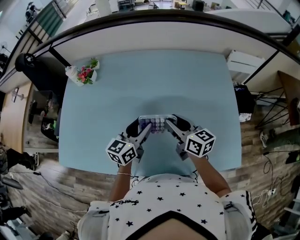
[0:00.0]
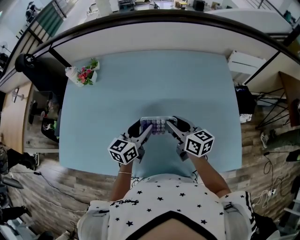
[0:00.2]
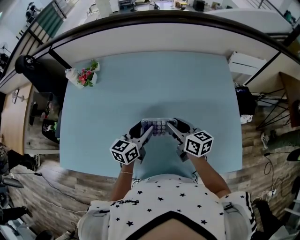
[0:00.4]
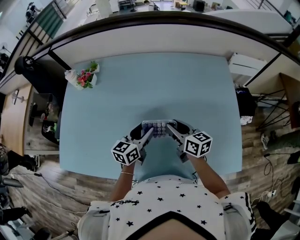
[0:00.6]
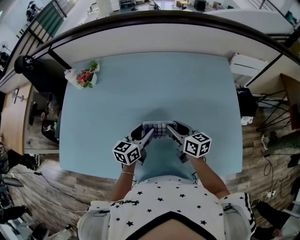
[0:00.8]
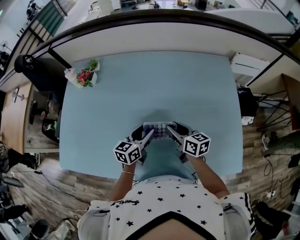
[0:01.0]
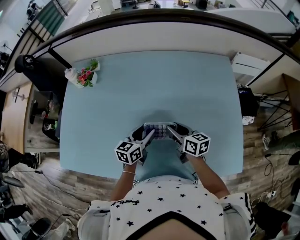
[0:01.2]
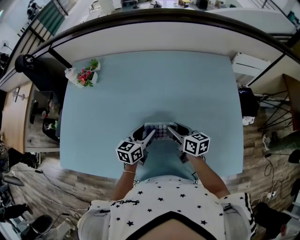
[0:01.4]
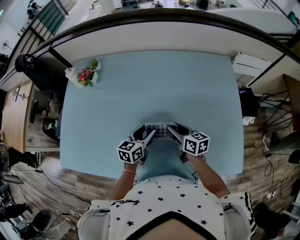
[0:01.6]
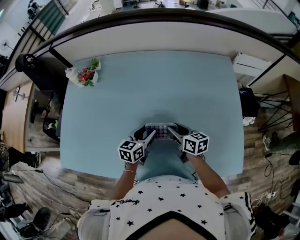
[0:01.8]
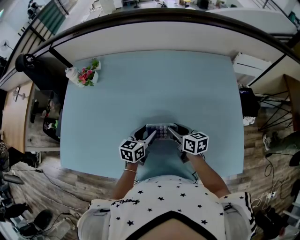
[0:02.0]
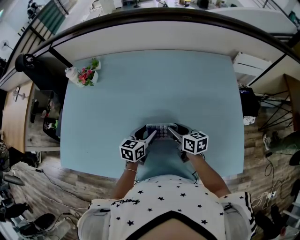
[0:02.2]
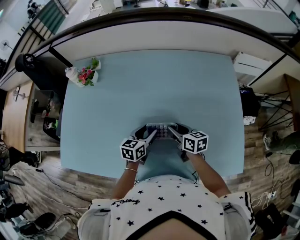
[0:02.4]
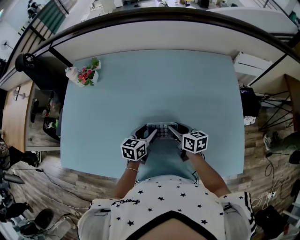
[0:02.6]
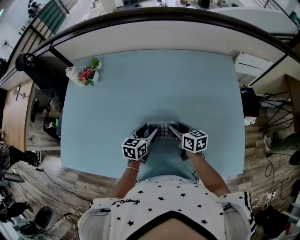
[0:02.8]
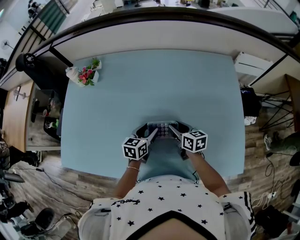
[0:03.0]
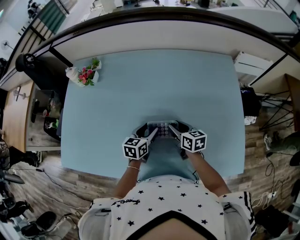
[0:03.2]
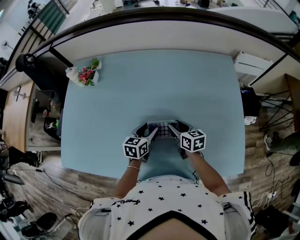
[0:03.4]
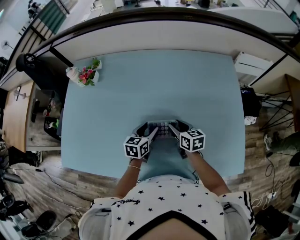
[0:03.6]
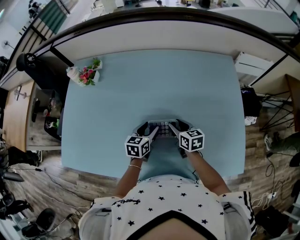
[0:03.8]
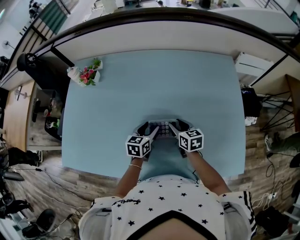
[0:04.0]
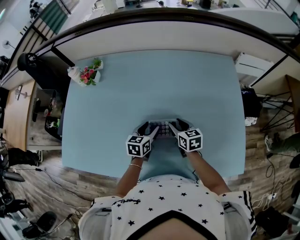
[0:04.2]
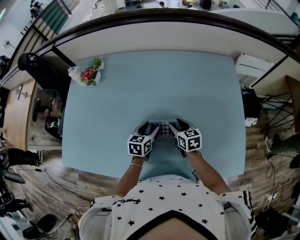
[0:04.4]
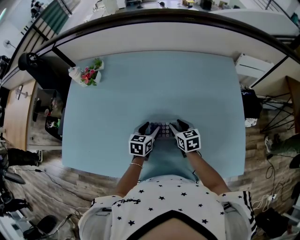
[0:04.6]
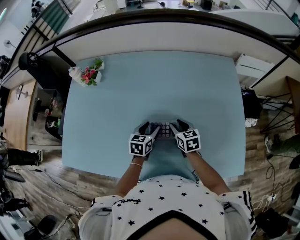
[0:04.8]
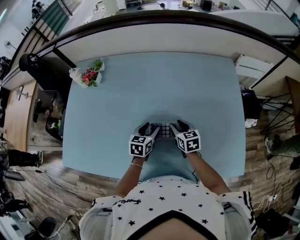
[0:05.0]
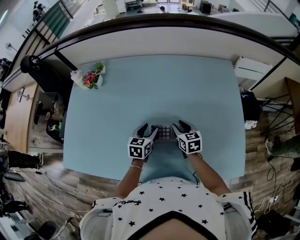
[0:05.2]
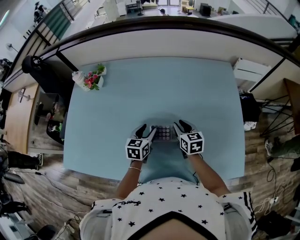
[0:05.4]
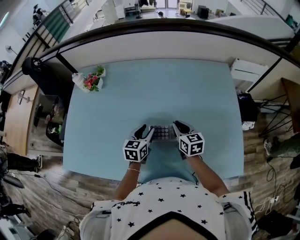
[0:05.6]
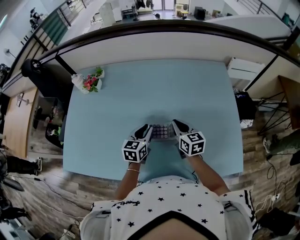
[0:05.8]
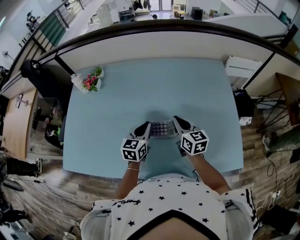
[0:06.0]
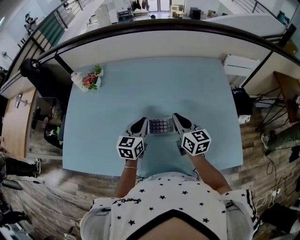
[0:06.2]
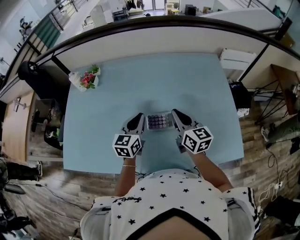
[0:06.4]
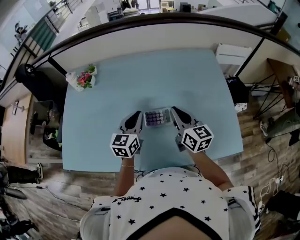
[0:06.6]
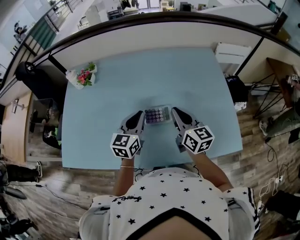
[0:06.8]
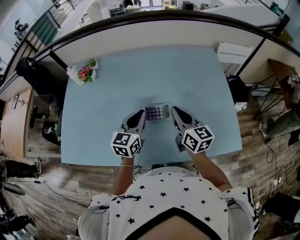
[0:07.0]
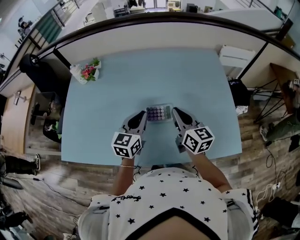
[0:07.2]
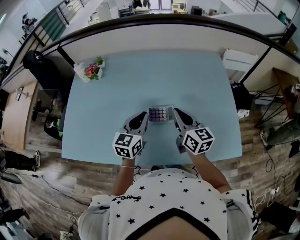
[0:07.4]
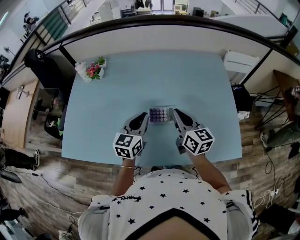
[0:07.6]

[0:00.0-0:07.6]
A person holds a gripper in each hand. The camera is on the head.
0:00.0 to 0:01.6: Both grippers move downward, approximately 10 cm.
0:01.6 to 0:03.0: The grippers move only a little.
0:03.0 to 0:04.6: The grippers make only small movements.
0:04.6 to 0:06.0: Both grippers travel together upward, some 10 cm. The left gripper closes up; the right gripper swivels approximately 20 degrees, and closes its fingers.
0:06.0 to 0:07.6: Both grippers travel together upward and backward, some 10 cm.

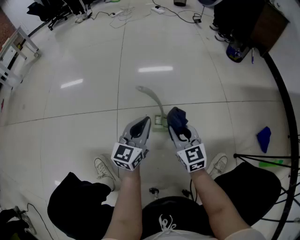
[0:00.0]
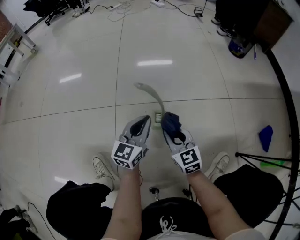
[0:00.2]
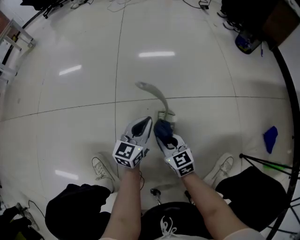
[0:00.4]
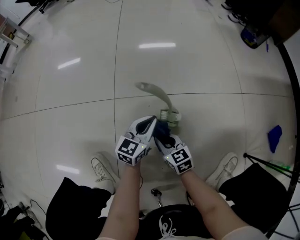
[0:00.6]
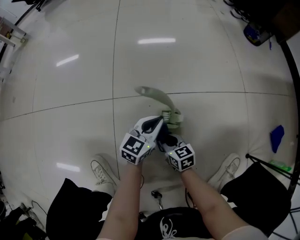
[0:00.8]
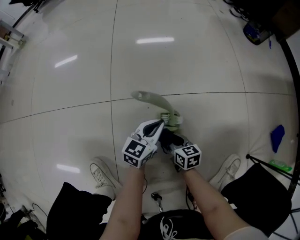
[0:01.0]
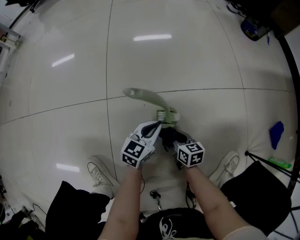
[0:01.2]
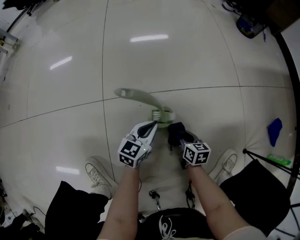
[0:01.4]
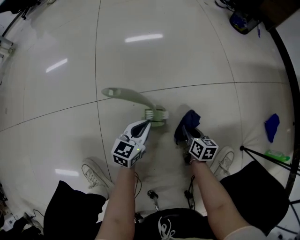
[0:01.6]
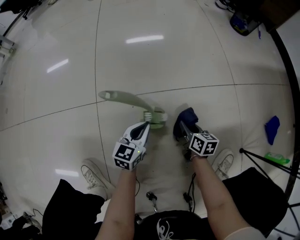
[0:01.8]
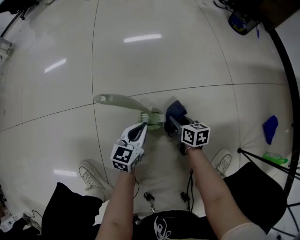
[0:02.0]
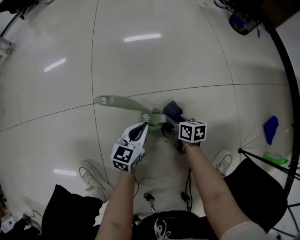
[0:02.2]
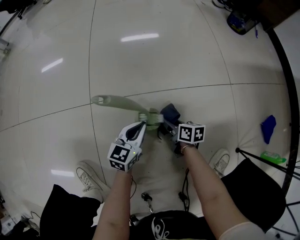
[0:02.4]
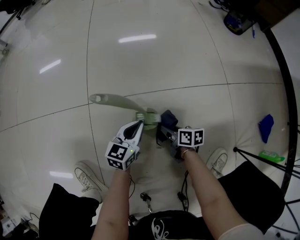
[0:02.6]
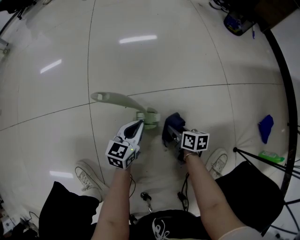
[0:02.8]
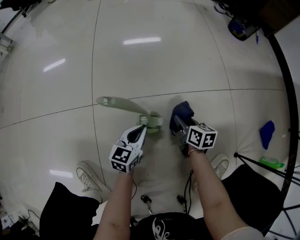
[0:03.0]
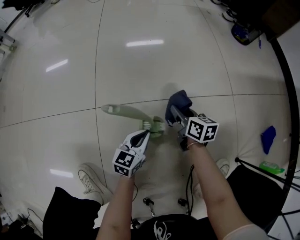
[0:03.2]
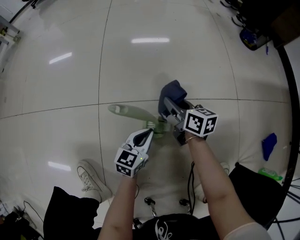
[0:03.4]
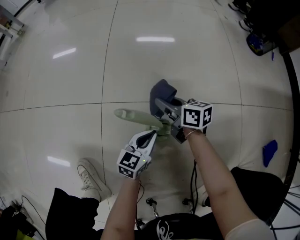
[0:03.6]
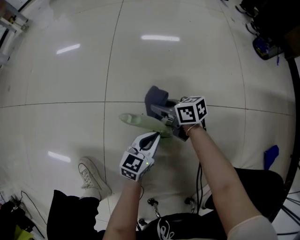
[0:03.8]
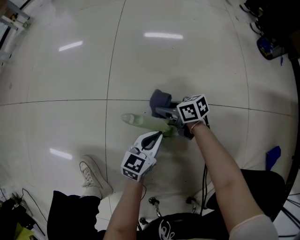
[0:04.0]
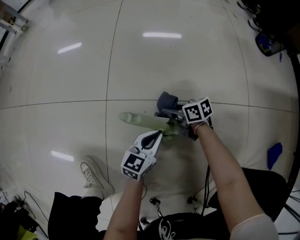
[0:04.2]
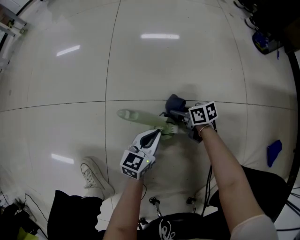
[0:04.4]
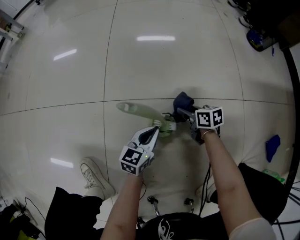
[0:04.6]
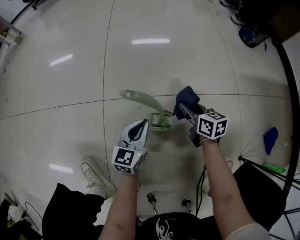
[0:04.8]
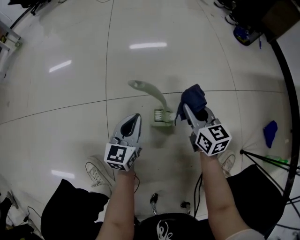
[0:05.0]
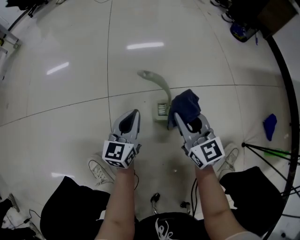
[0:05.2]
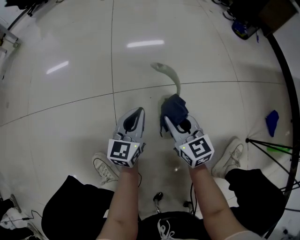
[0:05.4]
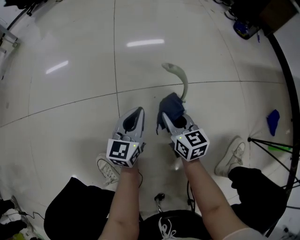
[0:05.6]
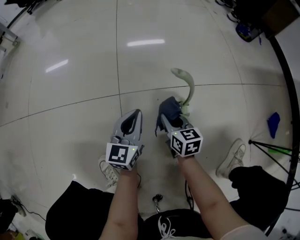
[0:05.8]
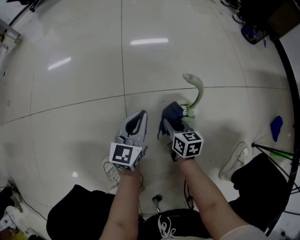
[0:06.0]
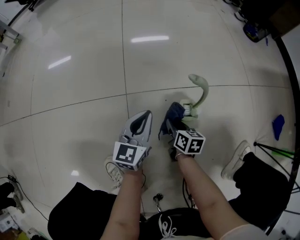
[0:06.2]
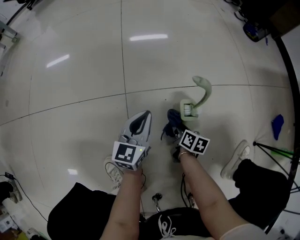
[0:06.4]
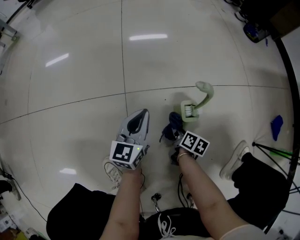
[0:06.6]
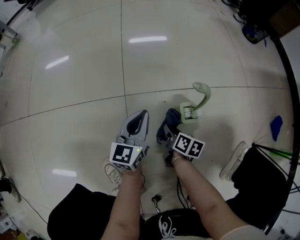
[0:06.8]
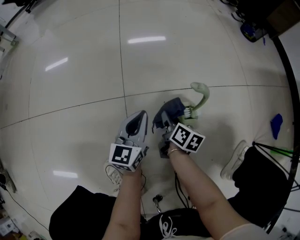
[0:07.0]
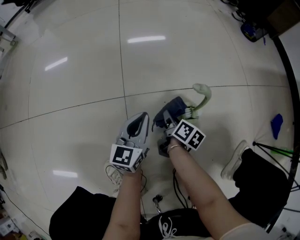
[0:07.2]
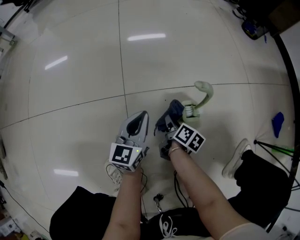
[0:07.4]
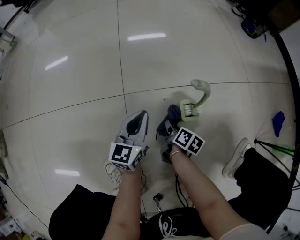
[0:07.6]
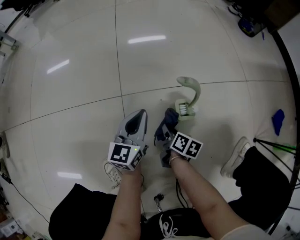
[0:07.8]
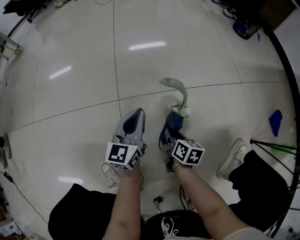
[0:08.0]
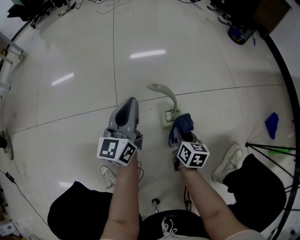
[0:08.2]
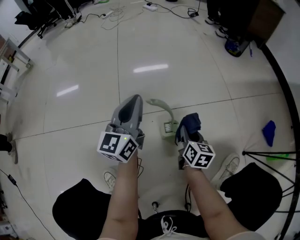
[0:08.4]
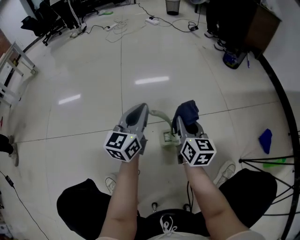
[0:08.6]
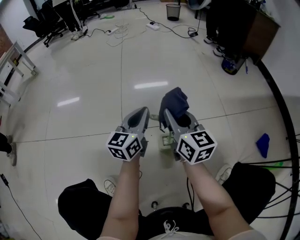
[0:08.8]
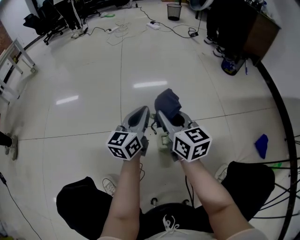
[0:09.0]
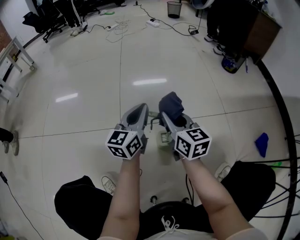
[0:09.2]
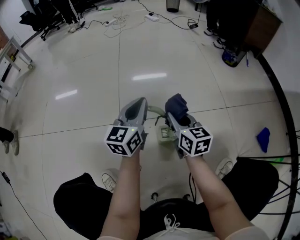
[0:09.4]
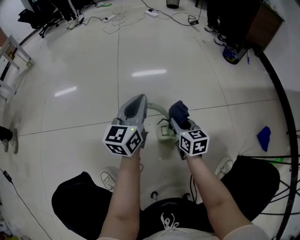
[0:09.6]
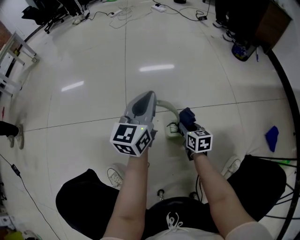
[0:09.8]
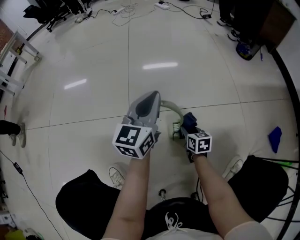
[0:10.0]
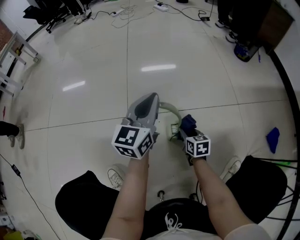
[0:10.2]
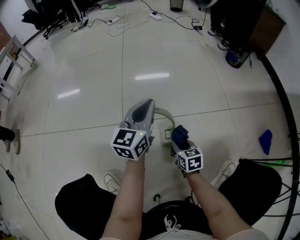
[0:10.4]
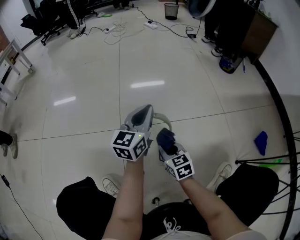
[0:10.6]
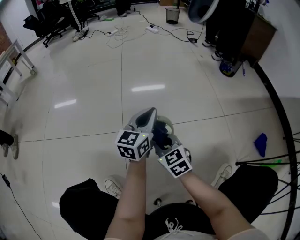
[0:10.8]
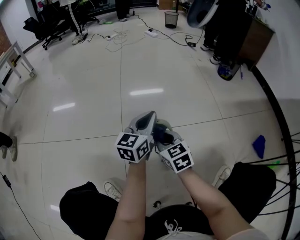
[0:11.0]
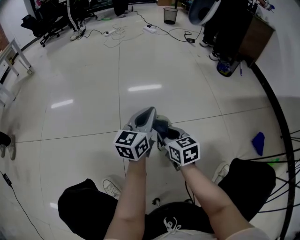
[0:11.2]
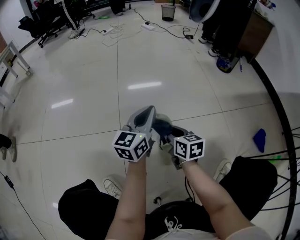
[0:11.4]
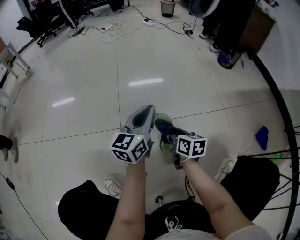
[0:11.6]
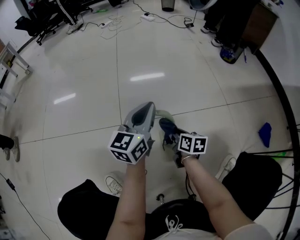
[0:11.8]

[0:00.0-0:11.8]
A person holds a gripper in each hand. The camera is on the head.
0:00.0 to 0:01.4: Both grippers move downward, roughly 25 cm. The right gripper changes its angle by roughly 40 degrees. Meanwhile the left gripper swivels about 20 degrees.
0:01.4 to 0:03.0: The right gripper goes forward and backward, about 10 cm each way, reversing 2 times.
0:03.0 to 0:04.4: The right gripper reaches approximately 10 cm upward, then returns, and changes its angle by about 40 degrees.
0:04.4 to 0:06.0: The right gripper heads to the left and backward, covering approximately 15 cm, moves some 20 cm upward and comes back, and turns by roughly 40 degrees. Meanwhile the left gripper shifts some 20 cm to the left and upward.
0:06.0 to 0:07.4: The right gripper moves up and down over about 10 cm, changing direction 2 times, and twists some 40 degrees clockwise, seen from behind.
0:07.4 to 0:08.8: The right gripper travels upward by approximately 40 cm, and rotates around the line of its fingers by some 50 degrees, counterclockwise from behind; the left gripper moves upward and to the right, roughly 25 cm.
0:08.8 to 0:10.4: The right gripper shifts about 25 cm downward, and points its fingers approximately 30 degrees further downward.
0:10.4 to 0:11.8: The right gripper moves roughly 15 cm upward and comes back, and changes its angle by roughly 30 degrees.

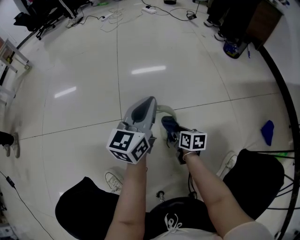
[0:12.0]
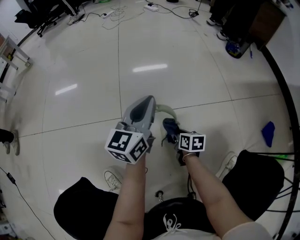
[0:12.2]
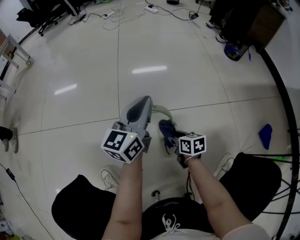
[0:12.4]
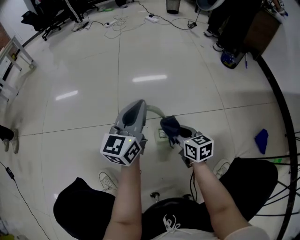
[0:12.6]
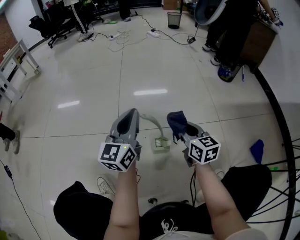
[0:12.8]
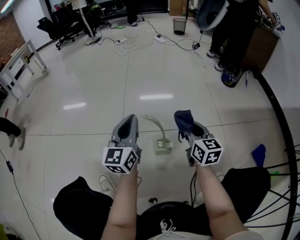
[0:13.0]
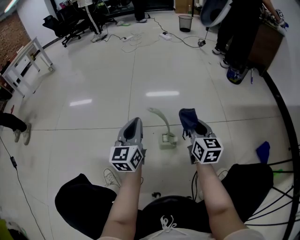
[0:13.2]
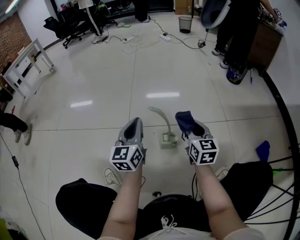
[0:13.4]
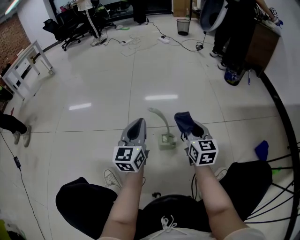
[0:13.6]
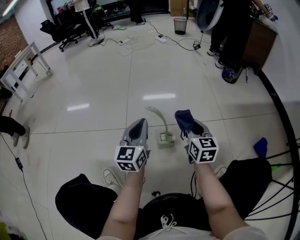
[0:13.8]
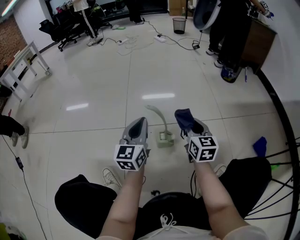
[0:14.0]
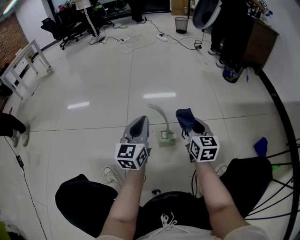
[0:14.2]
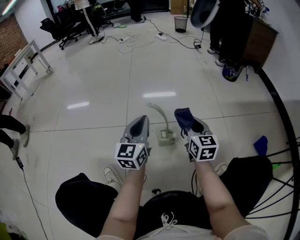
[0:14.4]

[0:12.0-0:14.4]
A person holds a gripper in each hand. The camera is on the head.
0:12.0 to 0:13.2: The right gripper moves upward and to the right, approximately 25 cm, and rotates roughly 40 degrees. Meanwhile the left gripper is displaced backward by some 5 cm, and swivels approximately 20 degrees.
0:13.2 to 0:14.4: There are only small adjustments of the grippers.

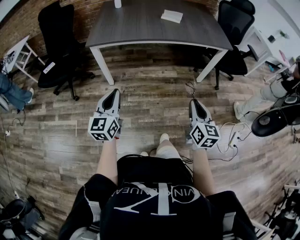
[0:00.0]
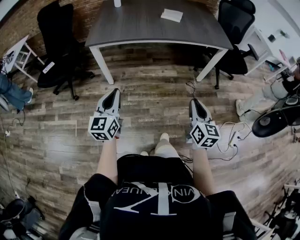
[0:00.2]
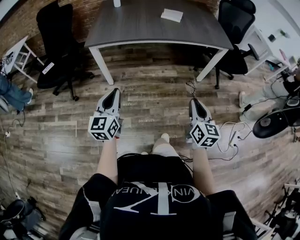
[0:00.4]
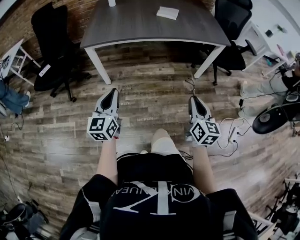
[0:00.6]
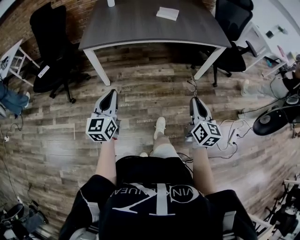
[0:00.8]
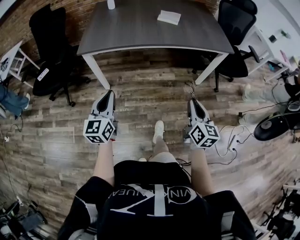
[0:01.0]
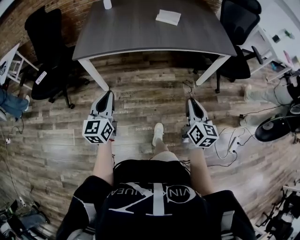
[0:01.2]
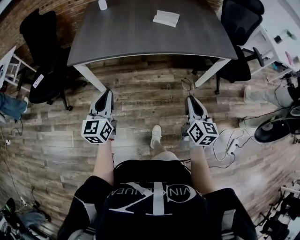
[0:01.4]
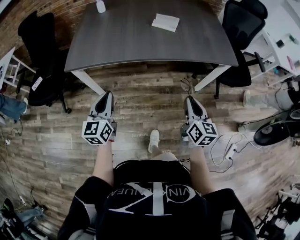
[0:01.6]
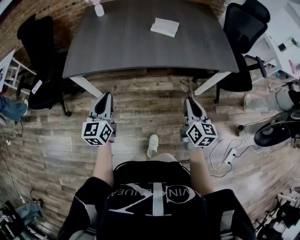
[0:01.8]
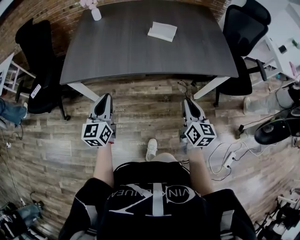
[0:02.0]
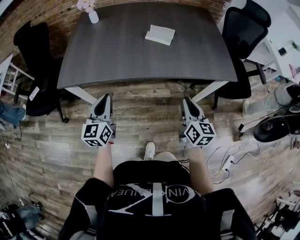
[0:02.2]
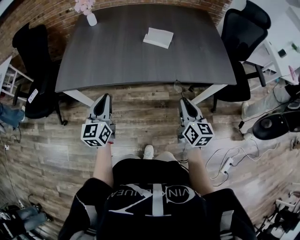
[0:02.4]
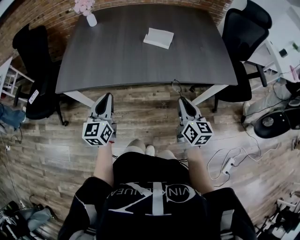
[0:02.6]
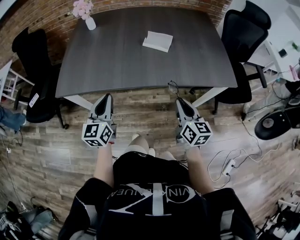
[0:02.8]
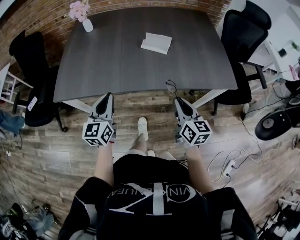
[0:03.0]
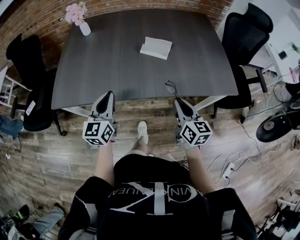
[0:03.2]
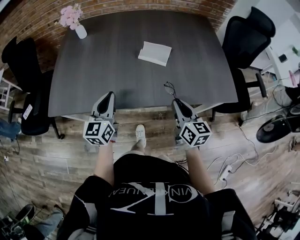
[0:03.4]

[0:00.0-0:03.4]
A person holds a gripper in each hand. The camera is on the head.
0:00.0 to 0:01.6: The grippers both shift forward by about 25 cm.
0:01.6 to 0:03.4: The two grippers go roughly 25 cm forward.
